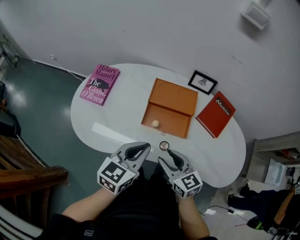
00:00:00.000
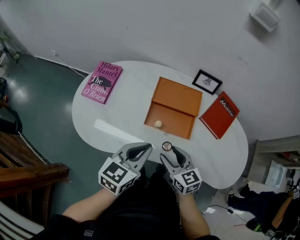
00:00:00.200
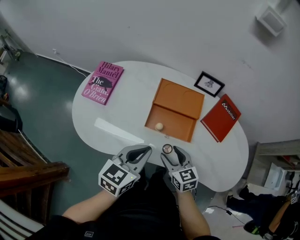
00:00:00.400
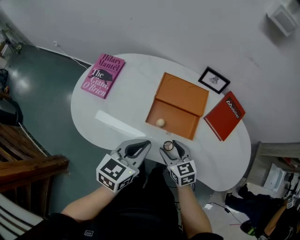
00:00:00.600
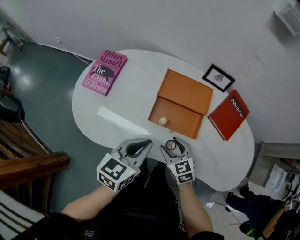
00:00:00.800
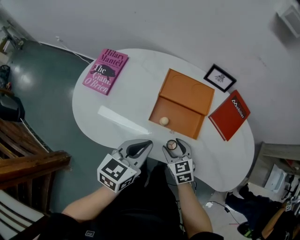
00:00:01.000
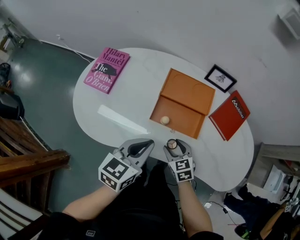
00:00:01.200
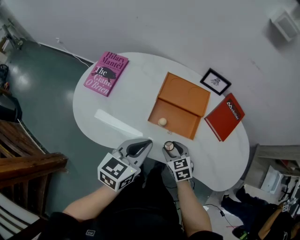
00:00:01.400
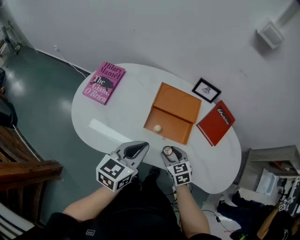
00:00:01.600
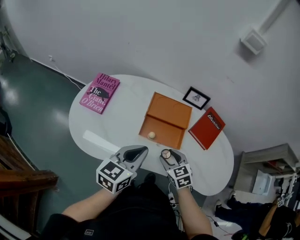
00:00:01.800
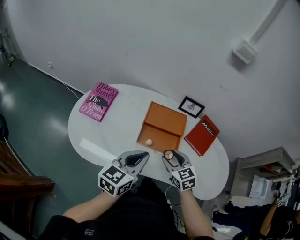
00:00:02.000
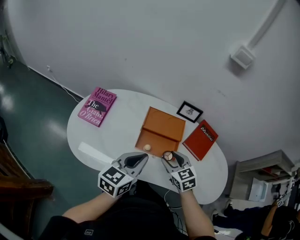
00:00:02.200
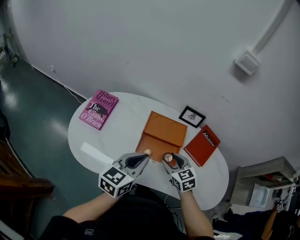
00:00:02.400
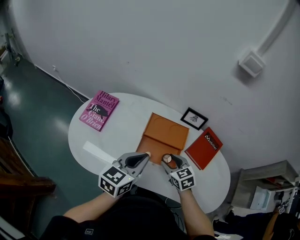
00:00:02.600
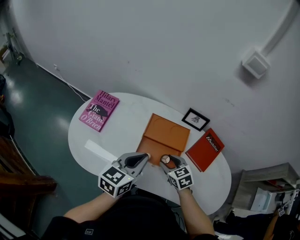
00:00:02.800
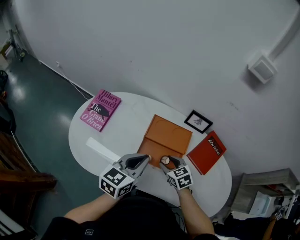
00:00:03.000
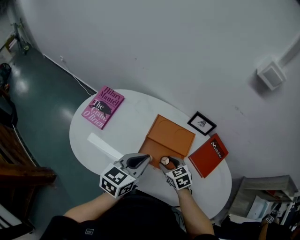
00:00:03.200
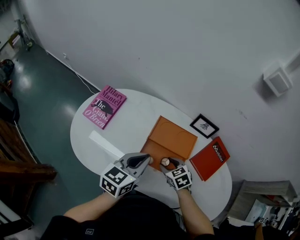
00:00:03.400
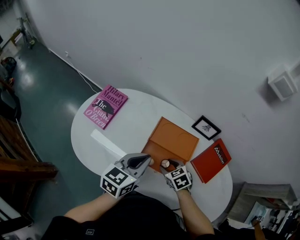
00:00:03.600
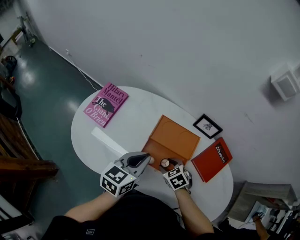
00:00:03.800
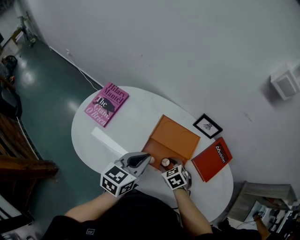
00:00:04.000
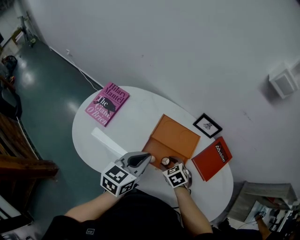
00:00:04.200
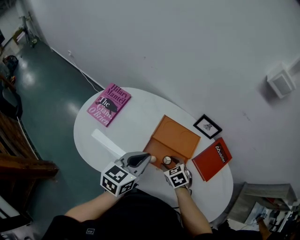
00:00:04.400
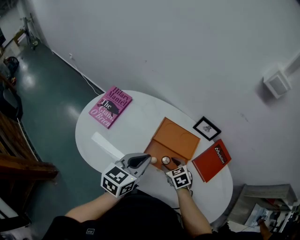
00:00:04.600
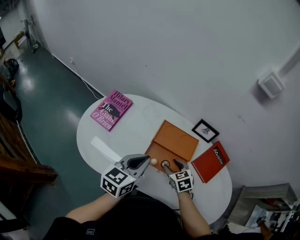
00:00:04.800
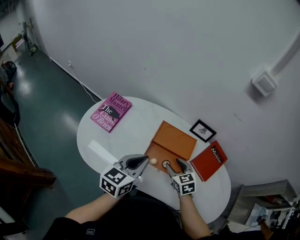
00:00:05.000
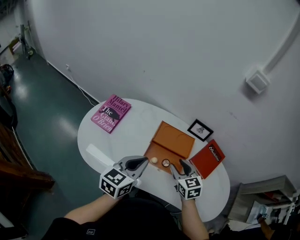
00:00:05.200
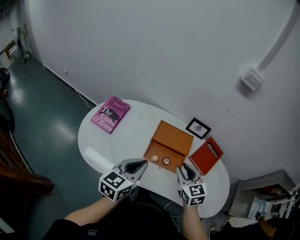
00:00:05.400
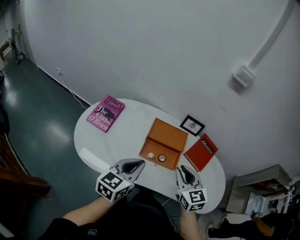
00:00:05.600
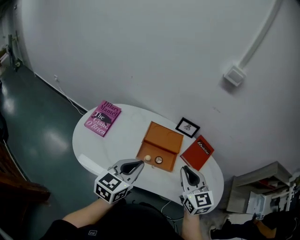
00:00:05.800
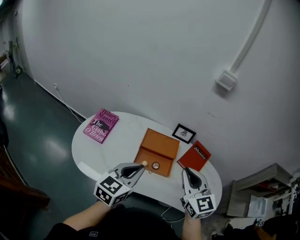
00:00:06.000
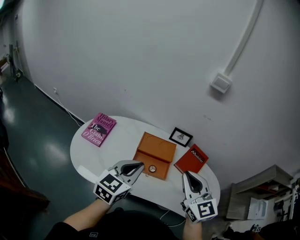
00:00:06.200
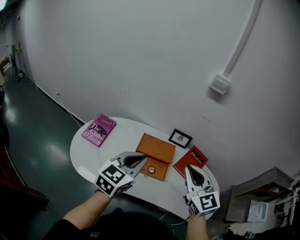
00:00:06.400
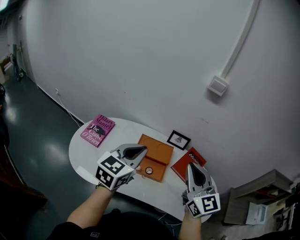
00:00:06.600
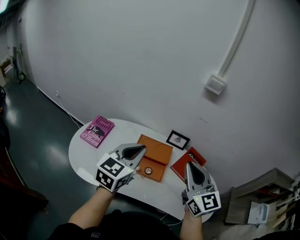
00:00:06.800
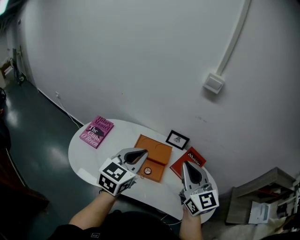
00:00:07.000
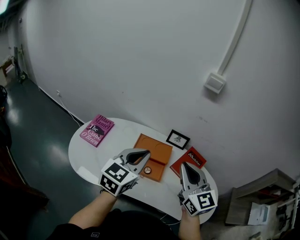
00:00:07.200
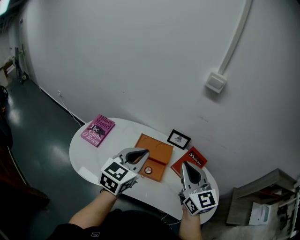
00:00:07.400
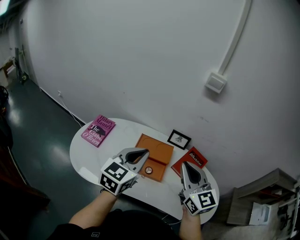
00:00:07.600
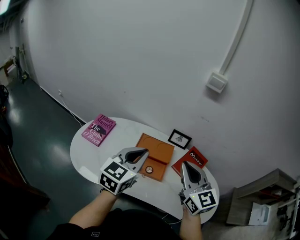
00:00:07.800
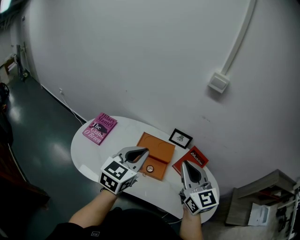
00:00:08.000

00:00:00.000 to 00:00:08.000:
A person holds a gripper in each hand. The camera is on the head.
00:00:00.000 to 00:00:01.600: The right gripper shifts about 10 cm downward, and swivels approximately 30 degrees.
00:00:01.600 to 00:00:03.200: The grippers both shift forward by roughly 10 cm. The right gripper moves approximately 10 cm upward and comes back.
00:00:03.200 to 00:00:04.800: The grippers move only a little.
00:00:04.800 to 00:00:06.400: The left gripper shifts roughly 15 cm upward, and swivels about 20 degrees; the right gripper goes some 35 cm upward, tilts its fingers approximately 40 degrees upward, and closes up.
00:00:06.400 to 00:00:08.000: The grippers make only small movements.

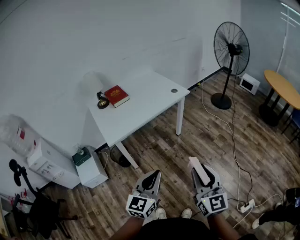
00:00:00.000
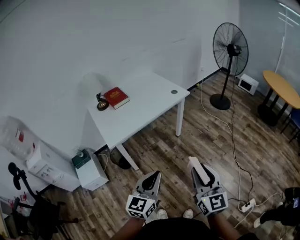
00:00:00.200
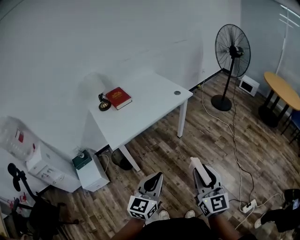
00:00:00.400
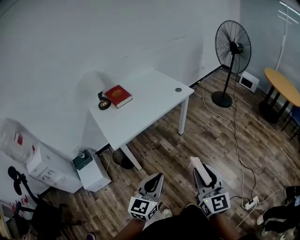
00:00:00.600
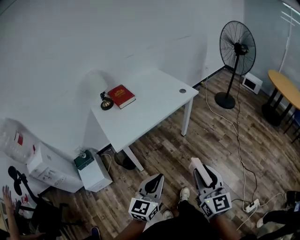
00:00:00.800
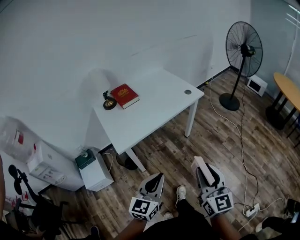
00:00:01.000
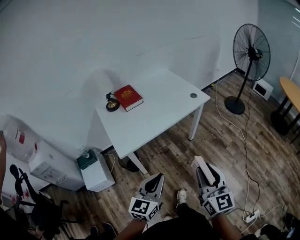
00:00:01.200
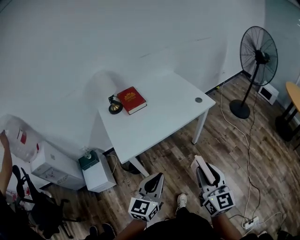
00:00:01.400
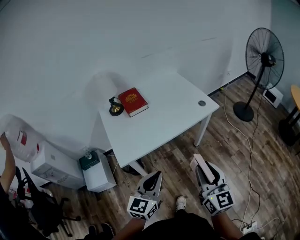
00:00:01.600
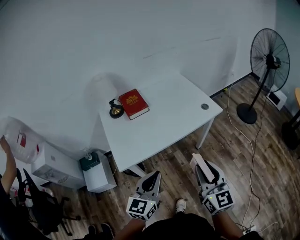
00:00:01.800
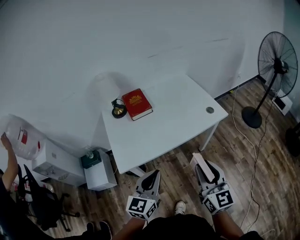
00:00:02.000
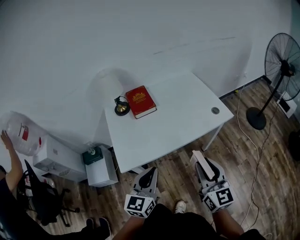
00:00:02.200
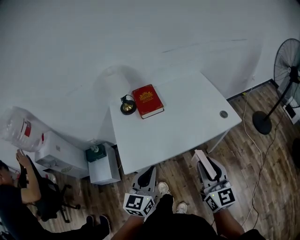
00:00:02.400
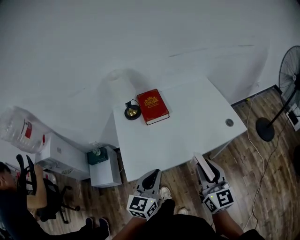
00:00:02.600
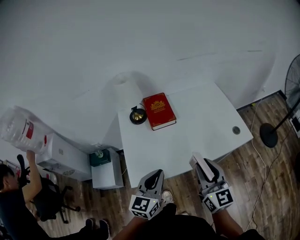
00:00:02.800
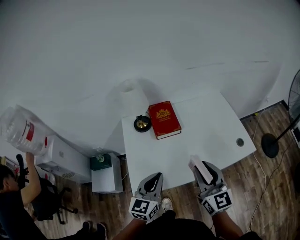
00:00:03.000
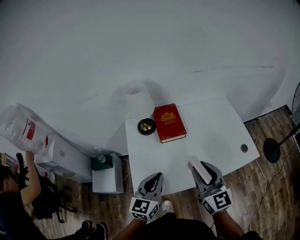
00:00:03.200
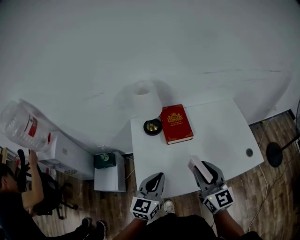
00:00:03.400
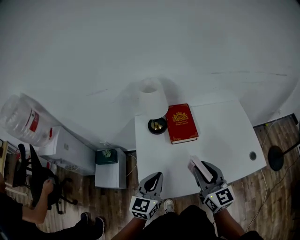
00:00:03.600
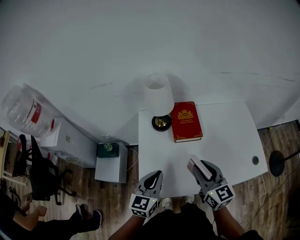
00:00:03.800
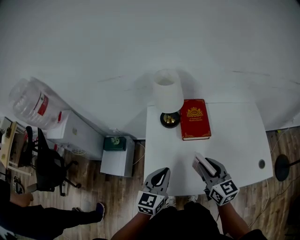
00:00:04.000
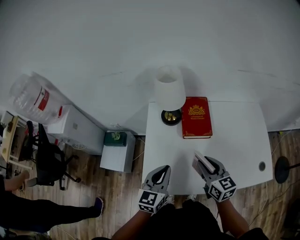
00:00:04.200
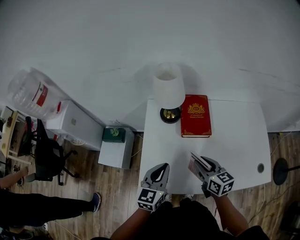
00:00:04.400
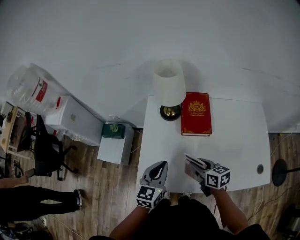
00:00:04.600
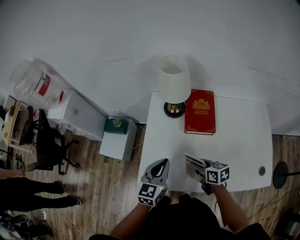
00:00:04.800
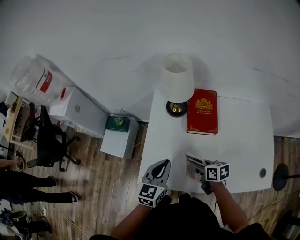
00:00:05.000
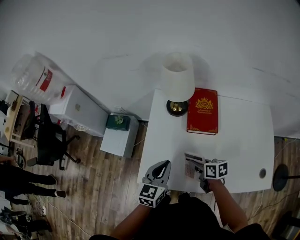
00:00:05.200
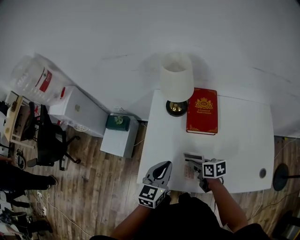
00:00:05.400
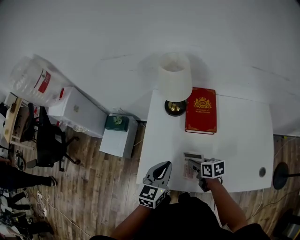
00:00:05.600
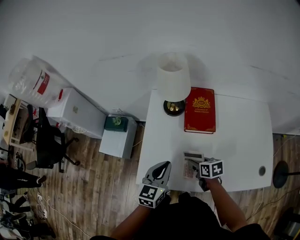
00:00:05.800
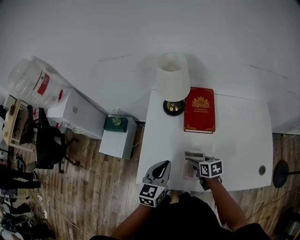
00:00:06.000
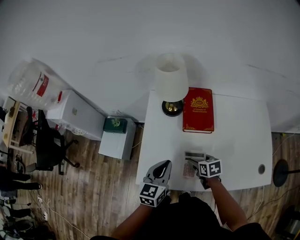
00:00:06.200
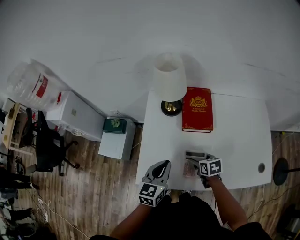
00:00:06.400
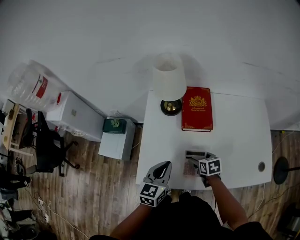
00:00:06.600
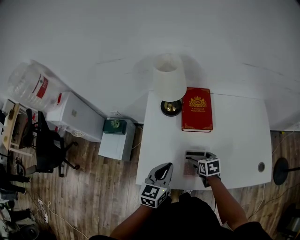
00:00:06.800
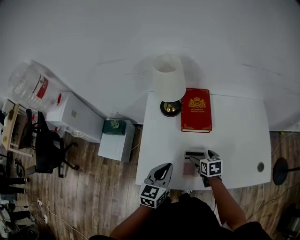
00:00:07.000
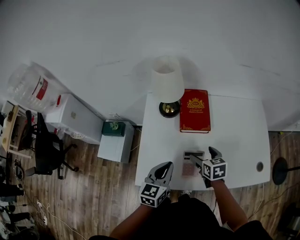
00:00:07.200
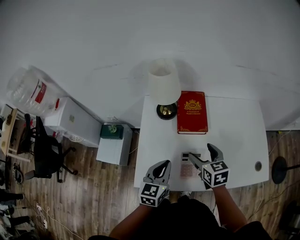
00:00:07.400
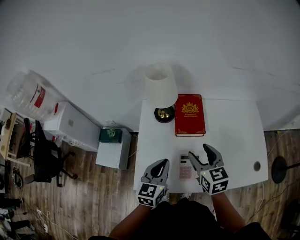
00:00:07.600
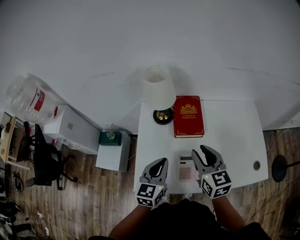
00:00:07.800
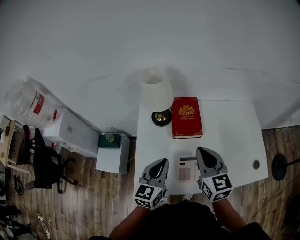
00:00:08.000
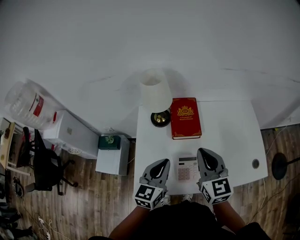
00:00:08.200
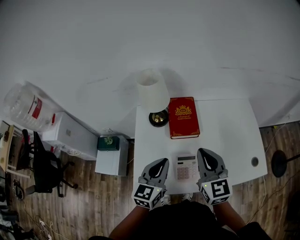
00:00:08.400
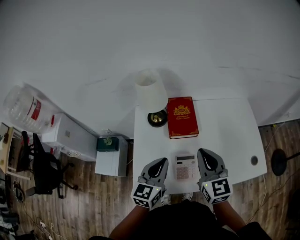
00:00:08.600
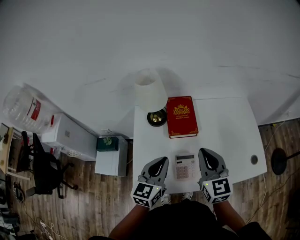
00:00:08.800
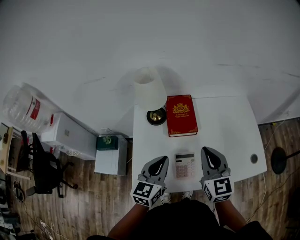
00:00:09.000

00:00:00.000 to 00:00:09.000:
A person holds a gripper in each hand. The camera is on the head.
00:00:00.000 to 00:00:01.600: The two grippers go about 25 cm forward and to the left.
00:00:01.600 to 00:00:03.000: Both grippers travel together forward and to the left, approximately 30 cm. The right gripper turns by roughly 20 degrees.
00:00:03.000 to 00:00:04.400: The right gripper shifts roughly 25 cm forward and downward, and changes its angle by some 40 degrees; the left gripper goes some 10 cm forward and downward.
00:00:04.400 to 00:00:06.000: The right gripper goes about 15 cm downward, and rotates about 30 degrees.
00:00:06.000 to 00:00:07.600: The right gripper moves upward, approximately 20 cm, changes its angle by about 40 degrees, and opens and closes again. Meanwhile the left gripper moves some 5 cm.
00:00:07.600 to 00:00:09.000: The right gripper travels upward by approximately 5 cm, and closes its fingers.

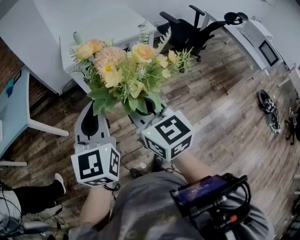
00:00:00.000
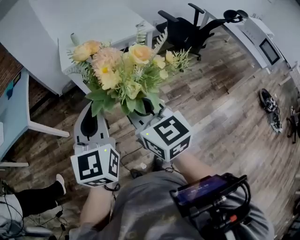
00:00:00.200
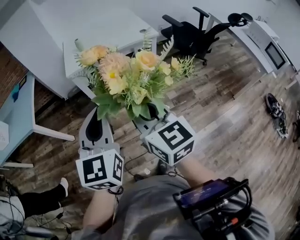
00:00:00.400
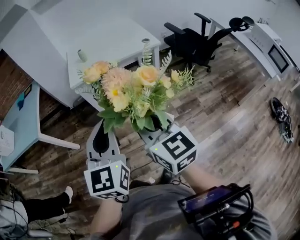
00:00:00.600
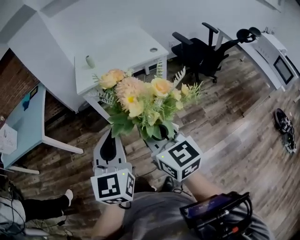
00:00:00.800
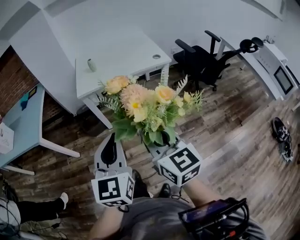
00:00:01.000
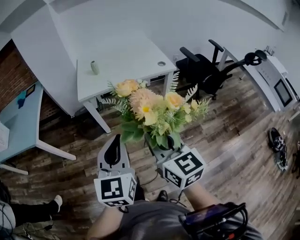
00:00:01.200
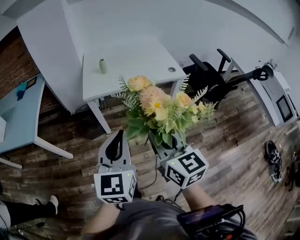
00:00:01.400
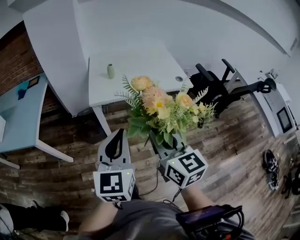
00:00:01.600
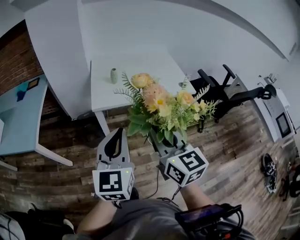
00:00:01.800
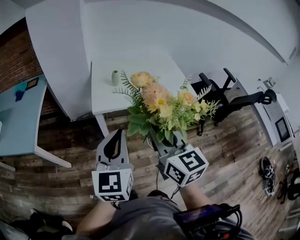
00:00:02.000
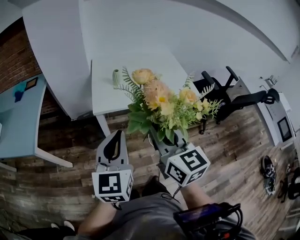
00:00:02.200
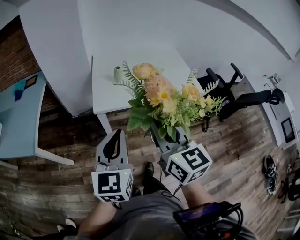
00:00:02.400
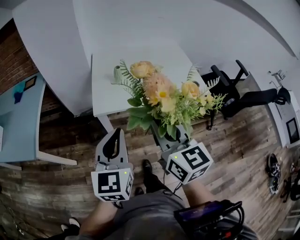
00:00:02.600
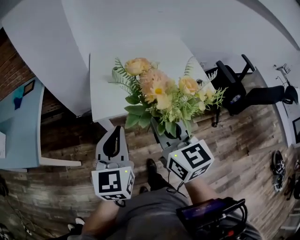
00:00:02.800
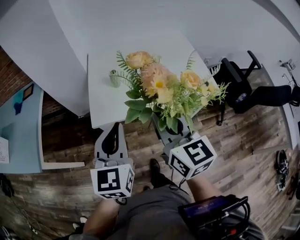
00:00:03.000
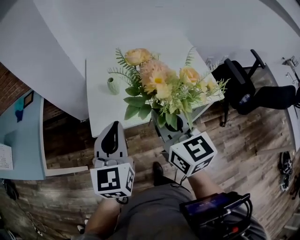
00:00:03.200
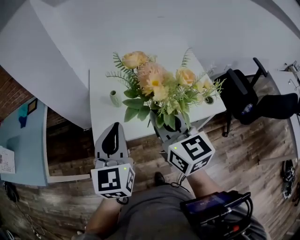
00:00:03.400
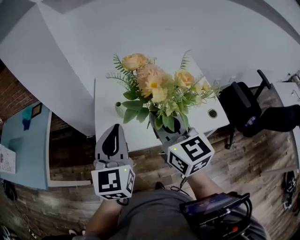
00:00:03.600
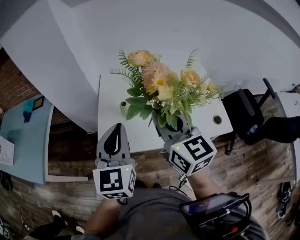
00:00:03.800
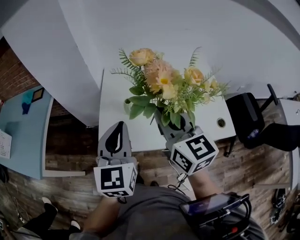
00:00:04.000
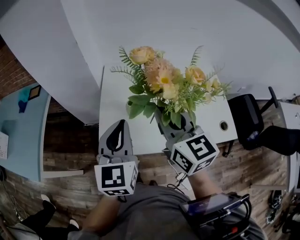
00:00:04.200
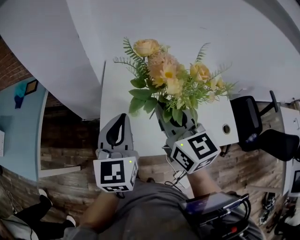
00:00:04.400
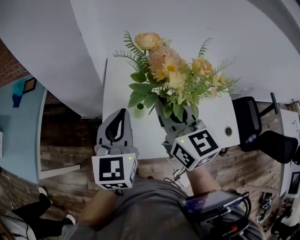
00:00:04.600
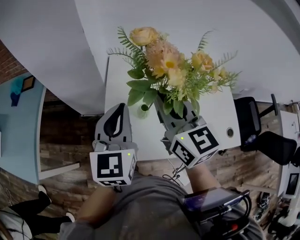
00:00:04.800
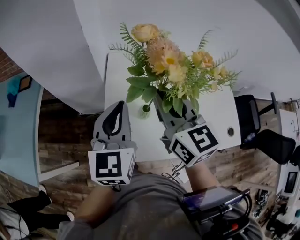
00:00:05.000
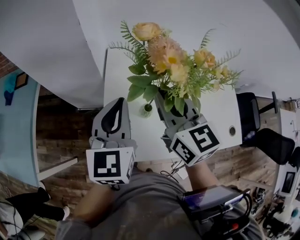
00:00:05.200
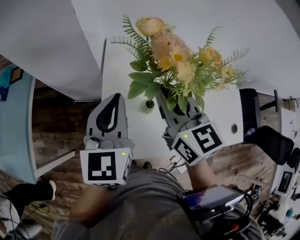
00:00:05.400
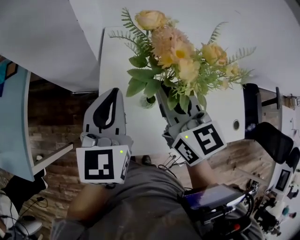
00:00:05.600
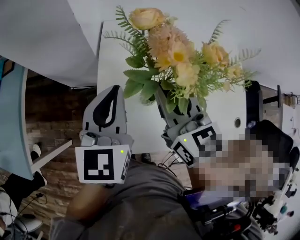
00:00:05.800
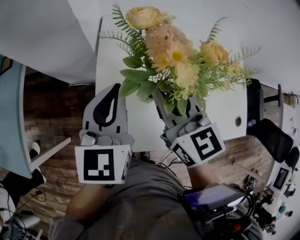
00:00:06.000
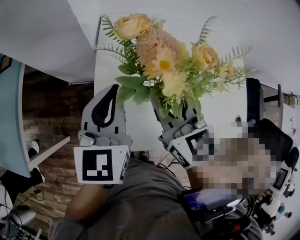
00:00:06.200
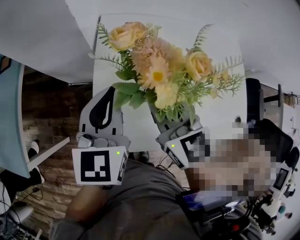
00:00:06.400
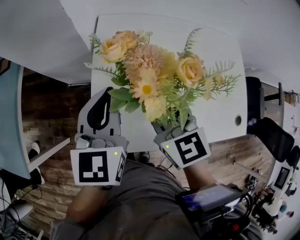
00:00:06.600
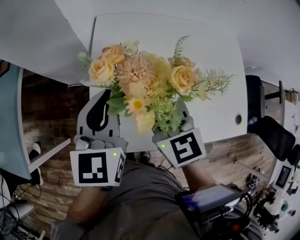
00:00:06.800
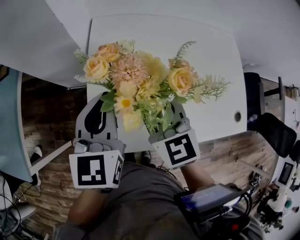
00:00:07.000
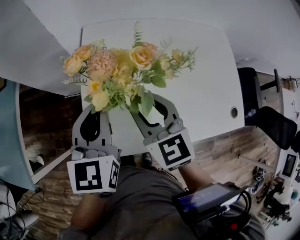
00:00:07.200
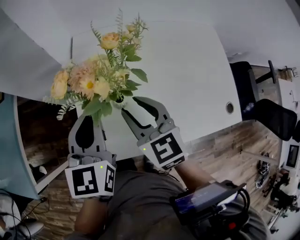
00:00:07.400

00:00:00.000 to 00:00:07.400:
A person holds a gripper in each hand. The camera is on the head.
00:00:00.000 to 00:00:01.400: The grippers both shift forward by approximately 15 cm.
00:00:01.400 to 00:00:03.000: The right gripper goes approximately 20 cm forward; the left gripper travels forward and to the left by some 20 cm.
00:00:03.000 to 00:00:04.400: The two grippers go approximately 5 cm backward.
00:00:04.400 to 00:00:06.000: There are only small adjustments of the grippers.
00:00:06.000 to 00:00:07.400: The right gripper heads downward, covering about 5 cm, and opens.
